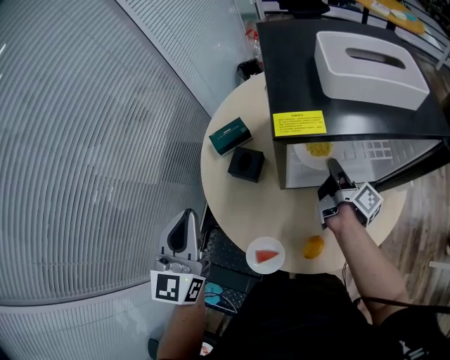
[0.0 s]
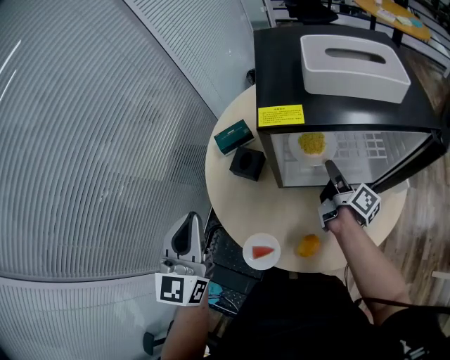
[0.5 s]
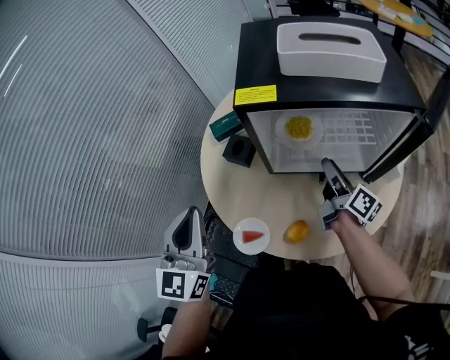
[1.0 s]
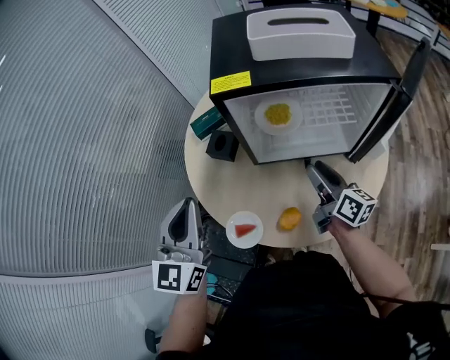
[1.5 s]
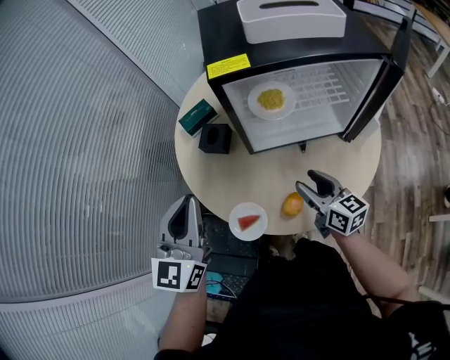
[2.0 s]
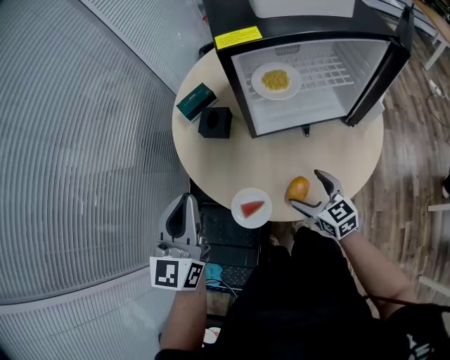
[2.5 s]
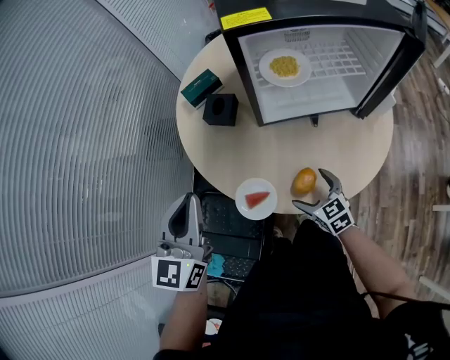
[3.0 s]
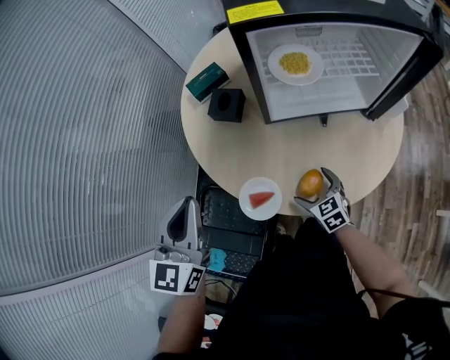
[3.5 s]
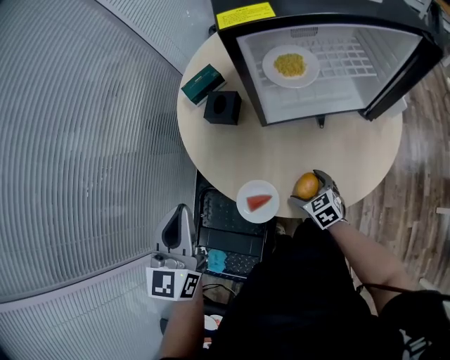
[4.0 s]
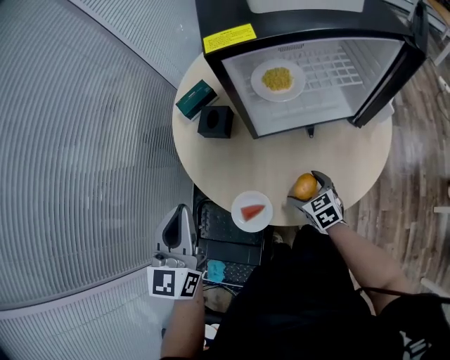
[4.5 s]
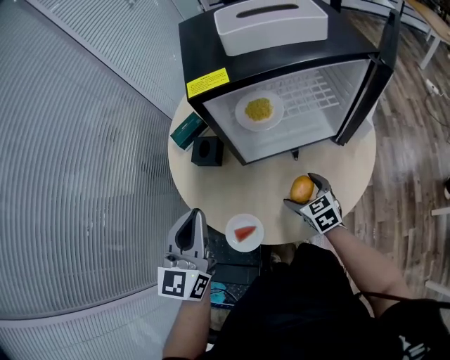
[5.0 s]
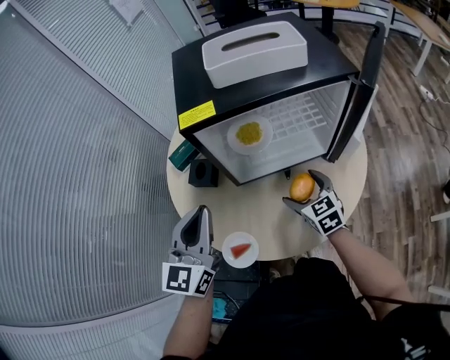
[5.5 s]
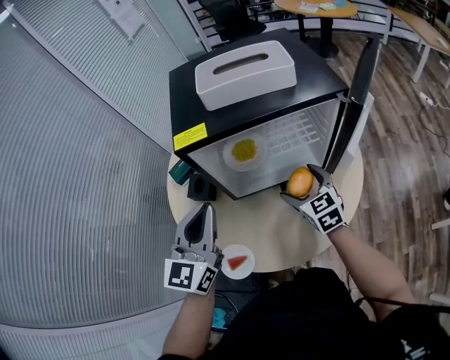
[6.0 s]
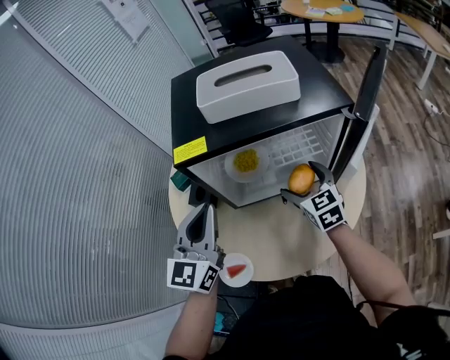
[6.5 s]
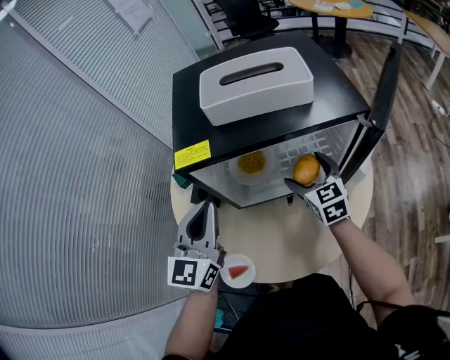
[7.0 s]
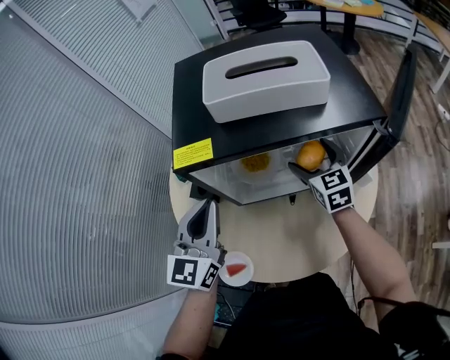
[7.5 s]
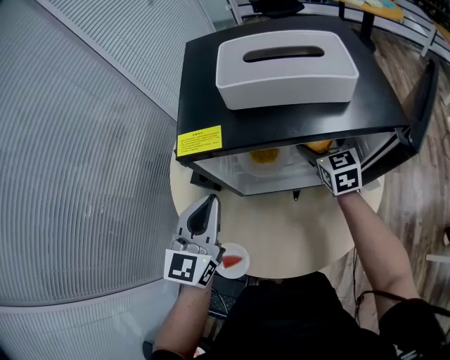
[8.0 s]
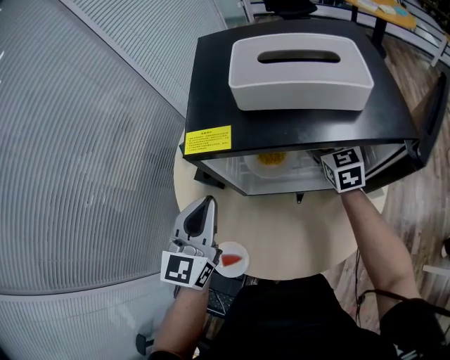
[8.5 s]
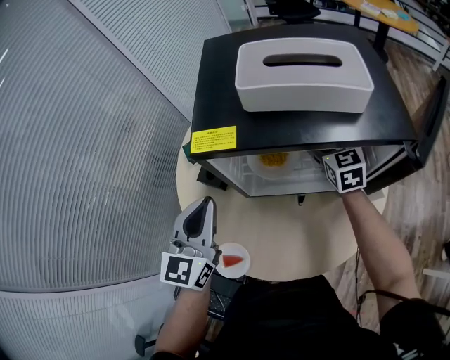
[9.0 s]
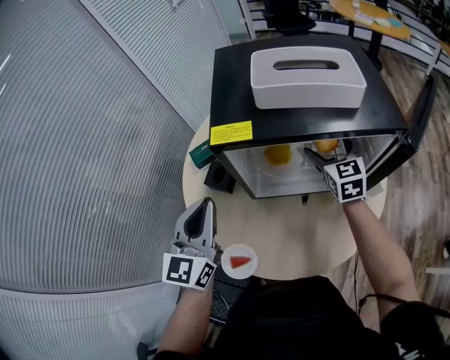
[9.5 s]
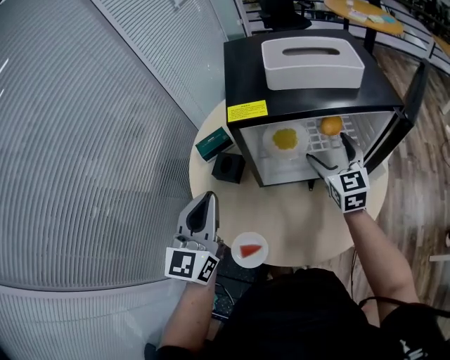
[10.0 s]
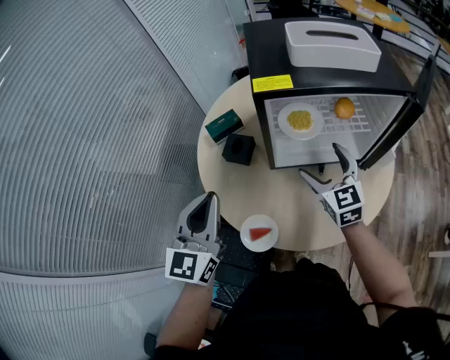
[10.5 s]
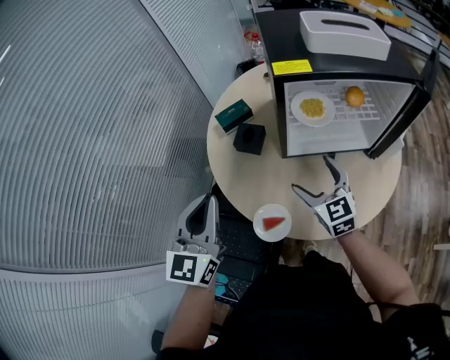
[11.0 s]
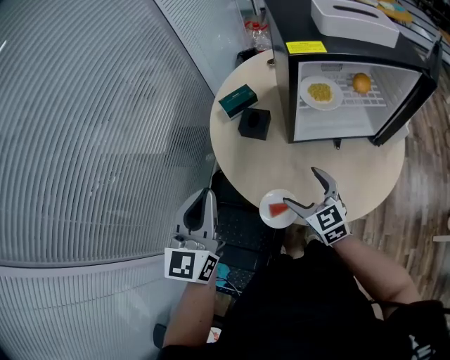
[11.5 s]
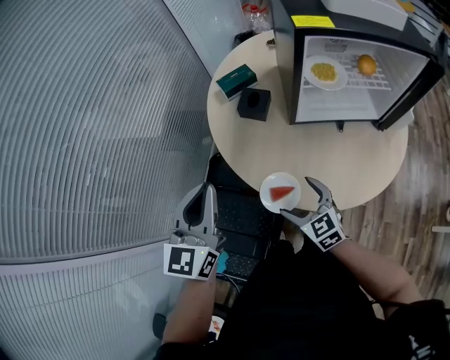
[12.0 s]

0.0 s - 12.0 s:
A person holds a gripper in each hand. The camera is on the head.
0.0 s - 2.0 s: The left gripper goes about 10 cm backward and to the right. Meanwhile the right gripper moves backward, approximately 20 cm, and rolls counterclockwise, seen from behind, by about 60 degrees.
2.0 s - 4.0 s: The left gripper heads to the left and downward, covering some 10 cm, while the right gripper shifts about 20 cm downward, points its fingers some 30 degrees further downward, and opens its fingers.
4.0 s - 6.0 s: The left gripper shifts approximately 25 cm to the right, forward and upward. Meanwhile the right gripper travels upward, to the right and forward by some 30 cm, and changes its angle by some 30 degrees.
6.0 s - 8.0 s: The right gripper heads forward, covering approximately 20 cm. The left gripper shifts some 10 cm forward and downward.
8.0 s - 10.0 s: The left gripper travels to the left and backward by about 10 cm. The right gripper moves backward, upward and to the left, about 15 cm.
10.0 s - 12.0 s: The right gripper heads to the left, backward and downward, covering roughly 40 cm, and swivels roughly 30 degrees. Meanwhile the left gripper moves to the left and backward, approximately 20 cm.

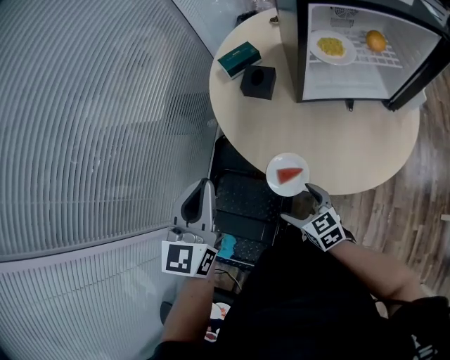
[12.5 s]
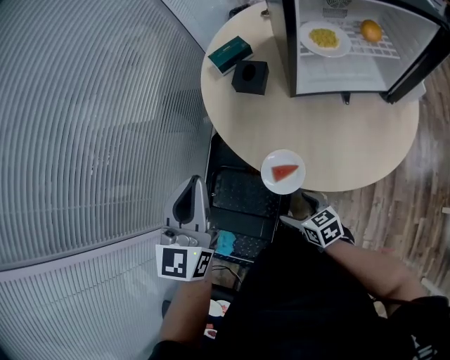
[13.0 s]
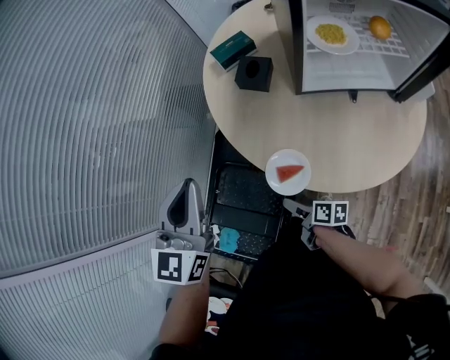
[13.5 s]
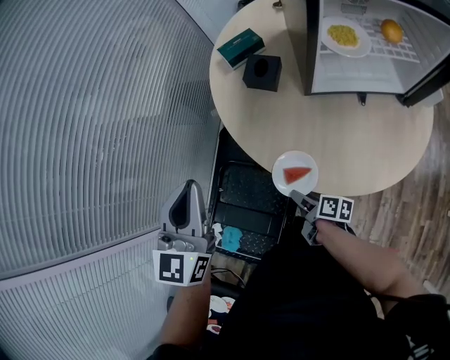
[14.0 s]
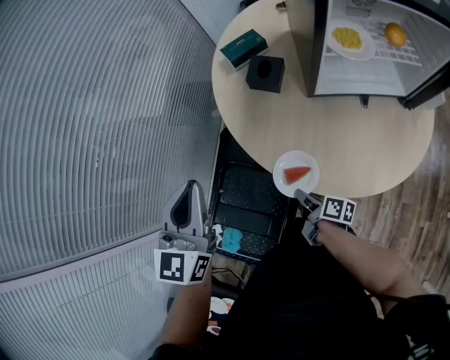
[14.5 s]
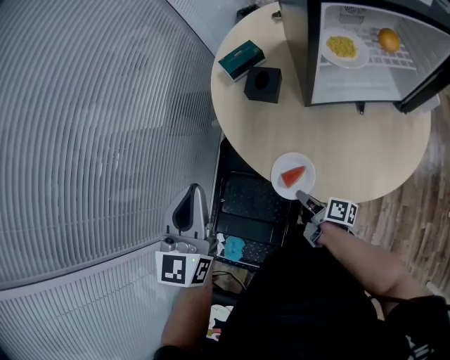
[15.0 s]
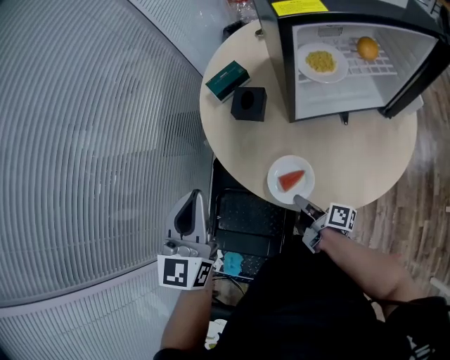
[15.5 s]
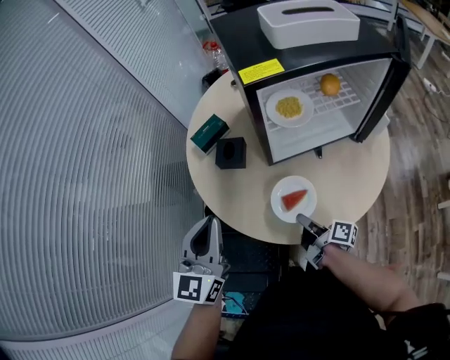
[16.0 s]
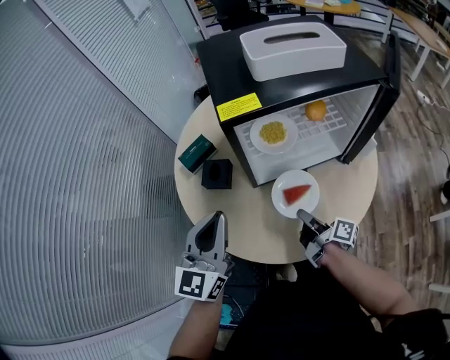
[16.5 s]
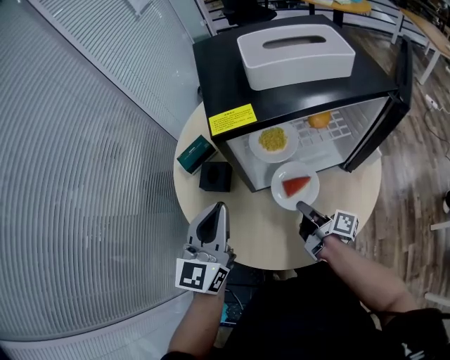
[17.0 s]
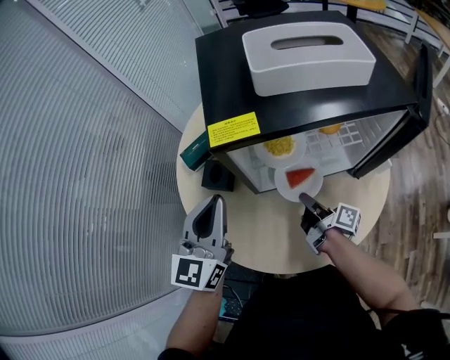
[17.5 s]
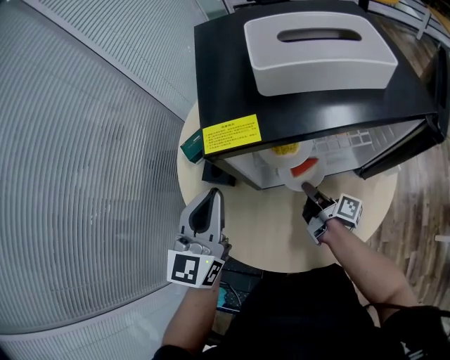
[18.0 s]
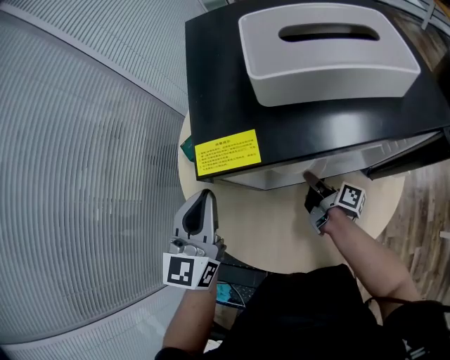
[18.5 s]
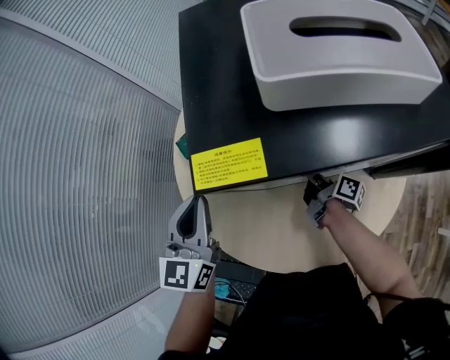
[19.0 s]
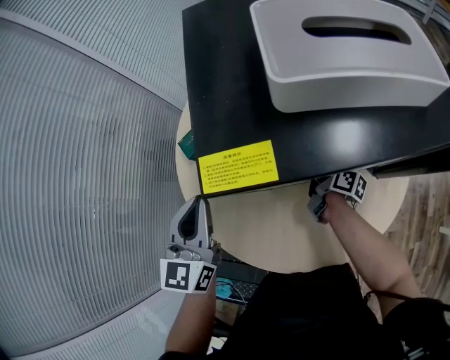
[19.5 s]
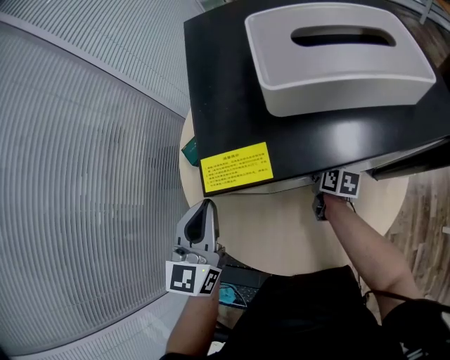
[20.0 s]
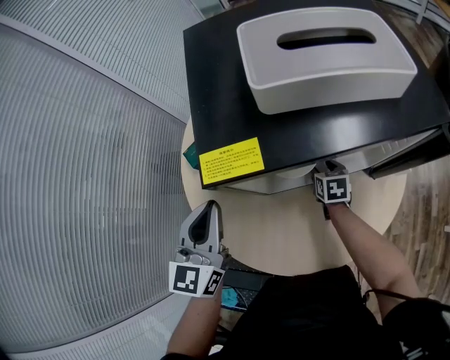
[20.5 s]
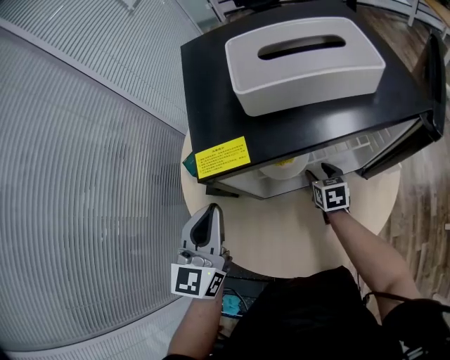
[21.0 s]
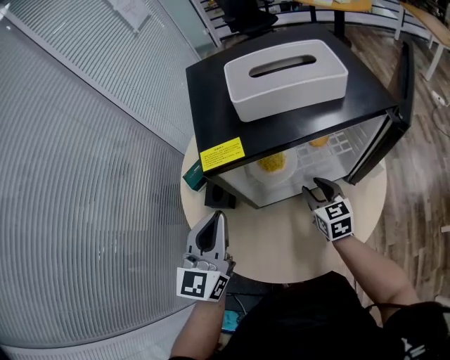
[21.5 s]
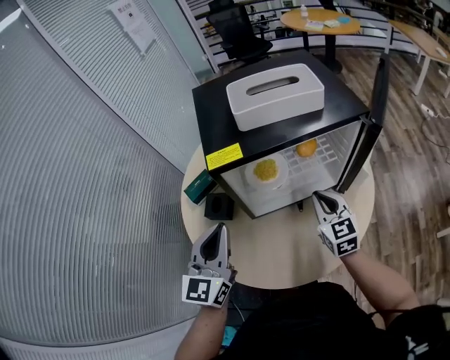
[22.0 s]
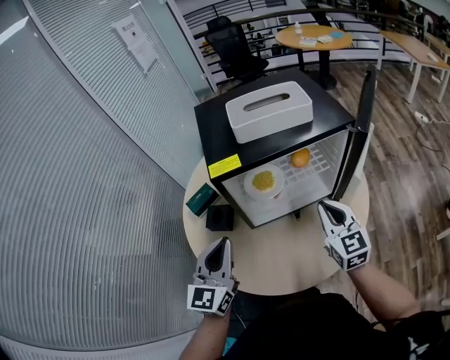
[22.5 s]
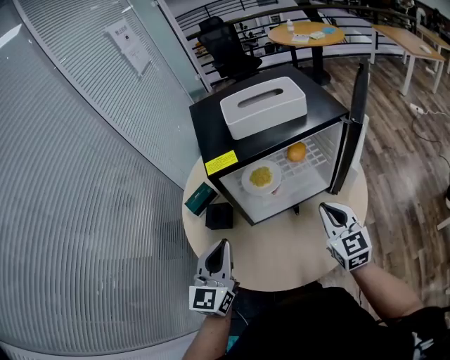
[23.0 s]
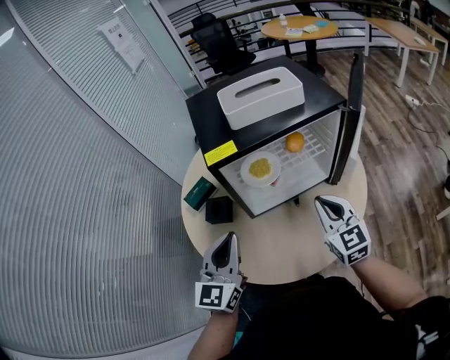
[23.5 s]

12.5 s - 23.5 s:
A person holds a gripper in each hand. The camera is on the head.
12.5 s - 14.5 s: The right gripper heads downward, covering about 10 cm, twists roughly 70 degrees clockwise, seen from behind, and closes its fingers.
14.5 s - 16.0 s: The right gripper moves to the right, upward and forward, roughly 20 cm, and rotates roughly 20 degrees; the left gripper is displaced to the right by about 10 cm.
16.0 s - 18.0 s: Both grippers travel together forward and to the right, roughly 20 cm.
18.0 s - 20.0 s: The left gripper ends up about 5 cm from where it was, while the right gripper shifts about 10 cm forward and downward, and tips its fingers downward by approximately 30 degrees.
20.0 s - 21.5 s: The left gripper travels backward, upward and to the right by approximately 10 cm, while the right gripper travels upward and backward by about 15 cm, and rolls counterclockwise, seen from behind, by roughly 40 degrees.
21.5 s - 23.5 s: The right gripper shifts roughly 20 cm upward and backward. The left gripper moves backward, about 10 cm.

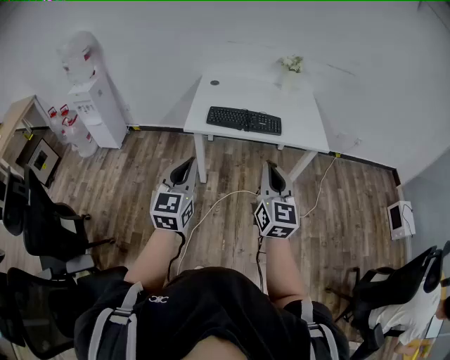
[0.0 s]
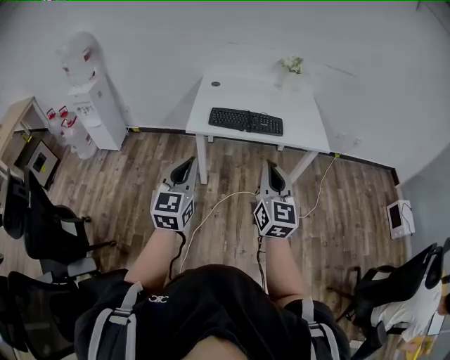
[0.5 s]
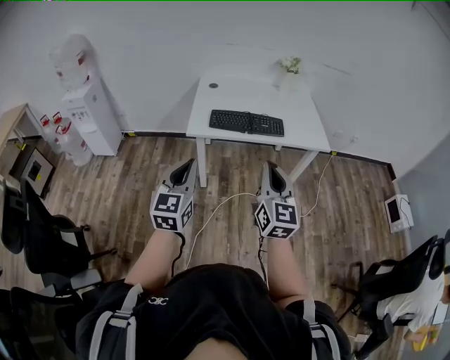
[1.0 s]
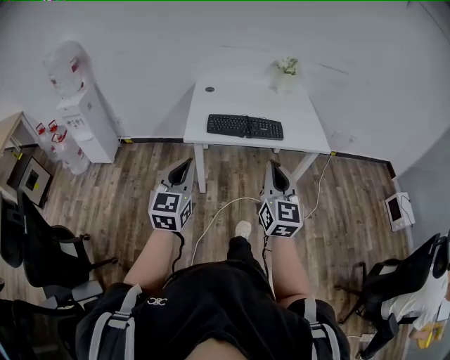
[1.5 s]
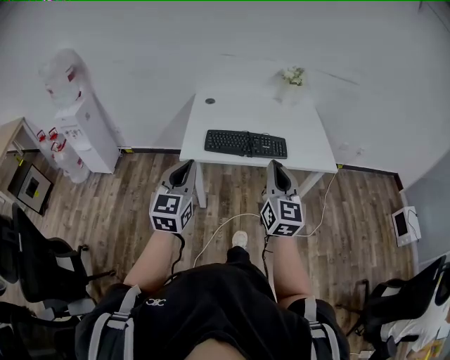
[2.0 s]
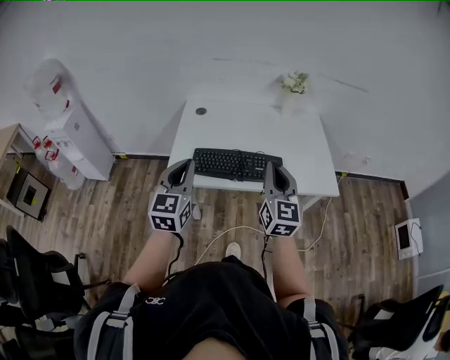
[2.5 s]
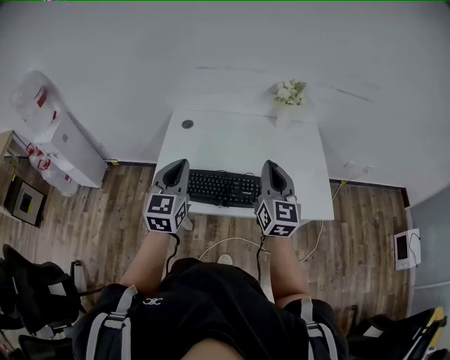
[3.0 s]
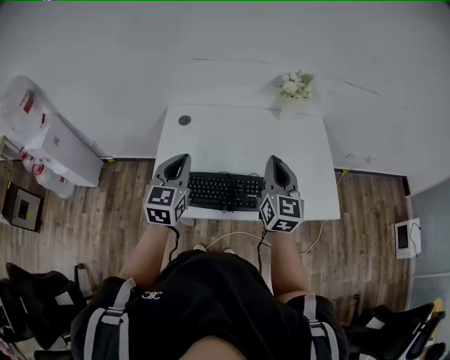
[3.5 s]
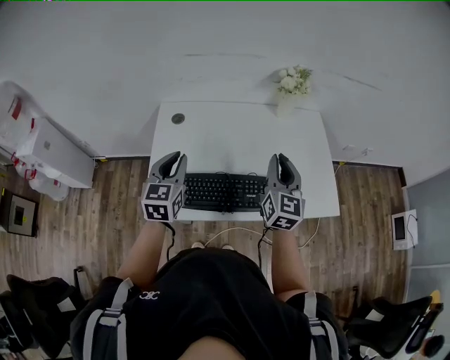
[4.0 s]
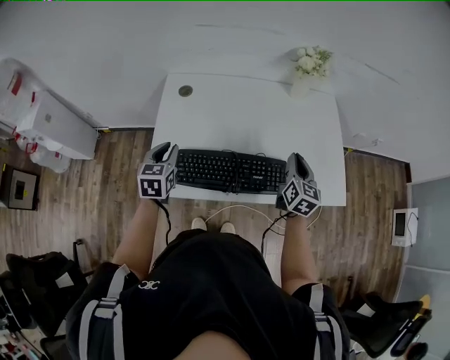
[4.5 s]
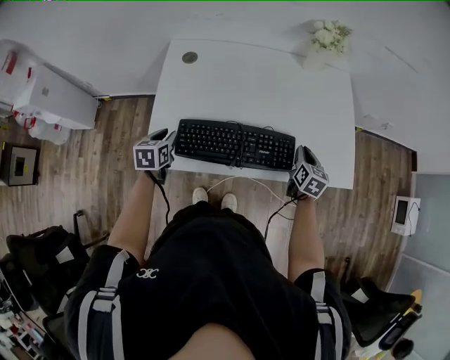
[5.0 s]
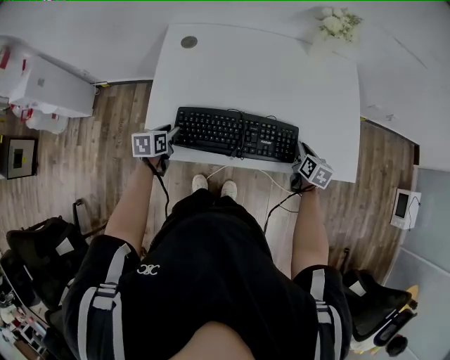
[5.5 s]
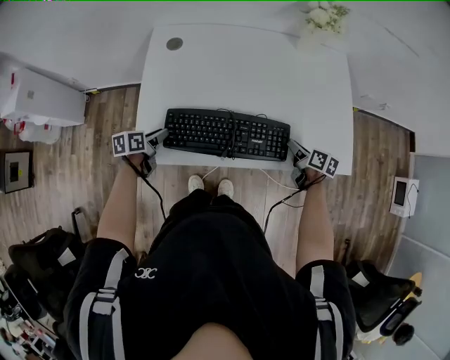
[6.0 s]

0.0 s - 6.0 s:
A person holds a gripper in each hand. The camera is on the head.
0.0 s - 2.0 s: Both grippers travel together forward, approximately 15 cm.
2.0 s - 4.0 s: Both grippers move forward, about 35 cm.
4.0 s - 6.0 s: Both grippers travel together downward, some 30 cm. The right gripper points its fingers approximately 40 degrees further downward. Meanwhile the left gripper turns by approximately 60 degrees, and opens.
